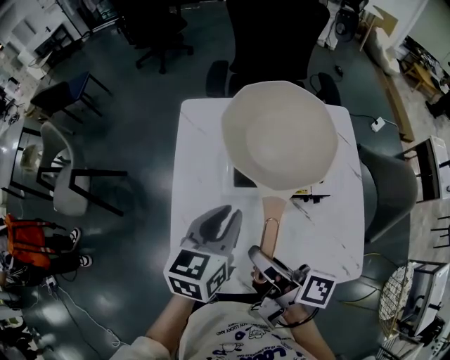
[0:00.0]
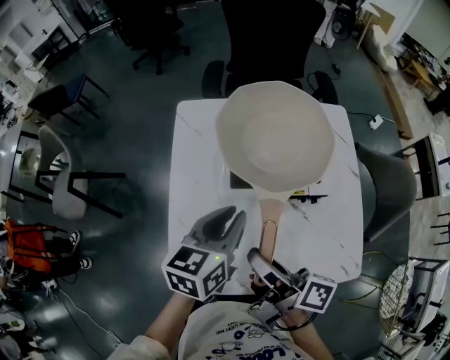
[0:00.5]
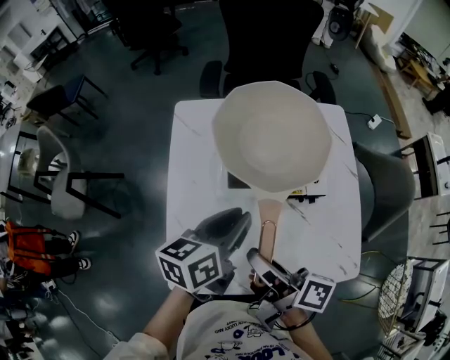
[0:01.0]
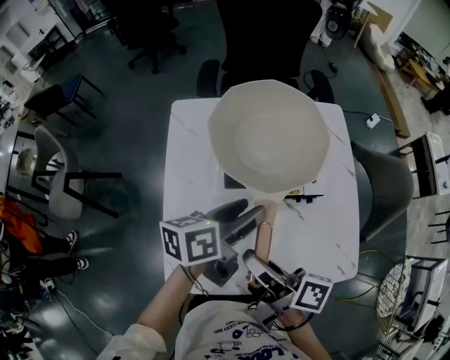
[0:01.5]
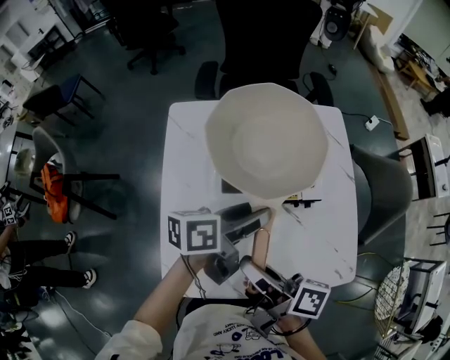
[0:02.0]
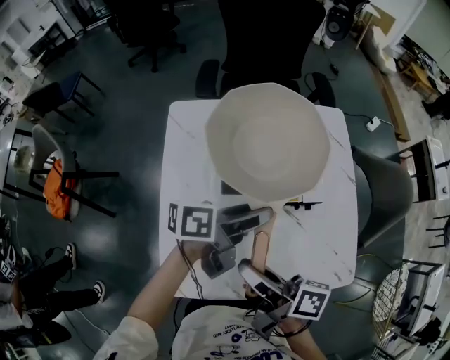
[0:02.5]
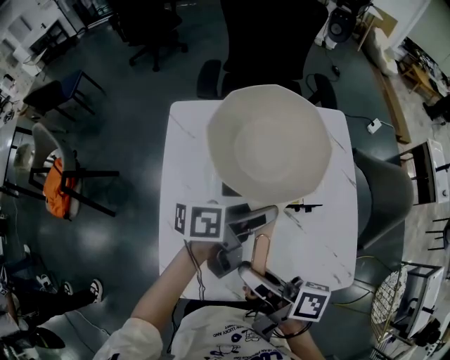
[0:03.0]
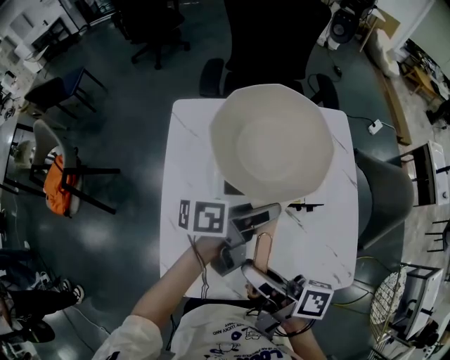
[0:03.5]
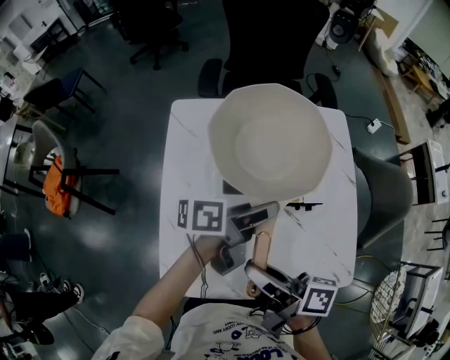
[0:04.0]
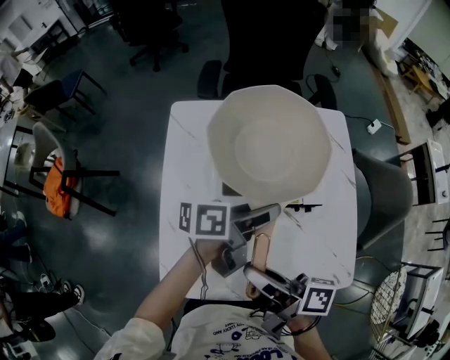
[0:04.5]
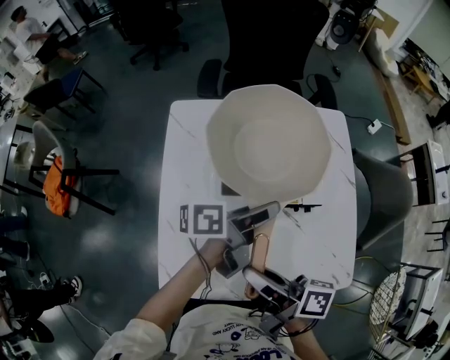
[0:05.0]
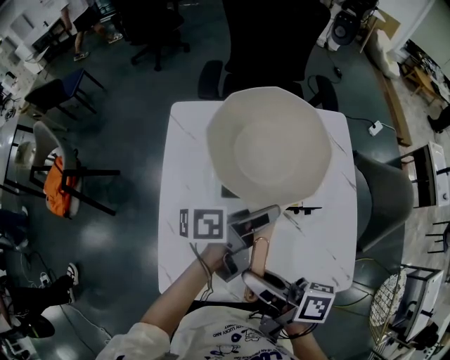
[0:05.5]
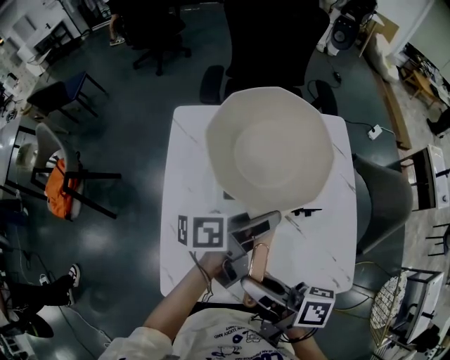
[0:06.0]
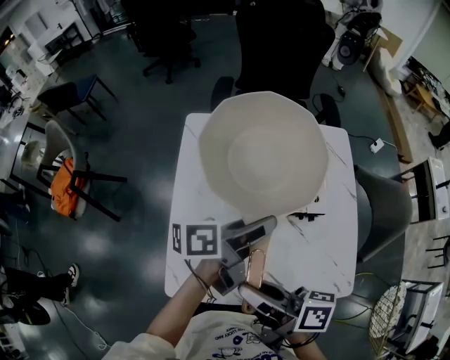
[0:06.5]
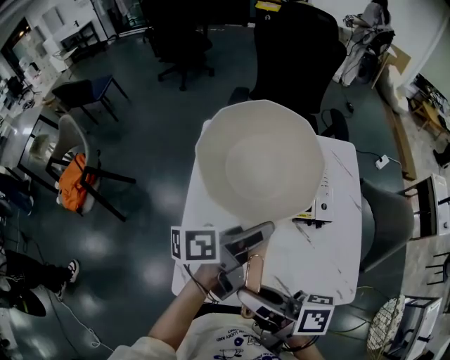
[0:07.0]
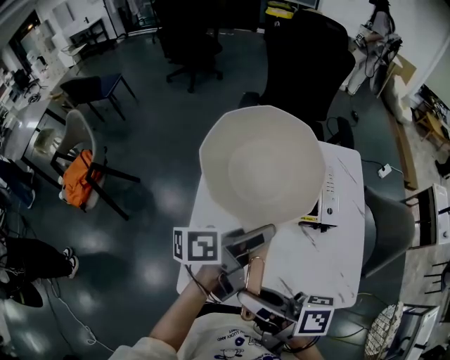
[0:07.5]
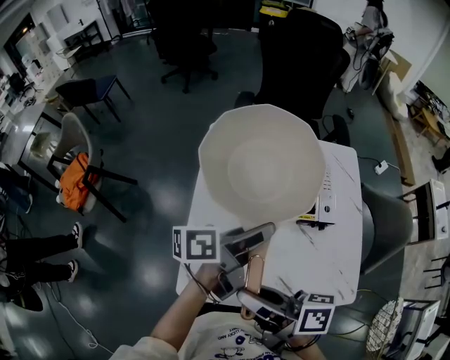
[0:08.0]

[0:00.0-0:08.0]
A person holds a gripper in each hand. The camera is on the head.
0:00.0 to 0:02.0: The left gripper goes approximately 10 cm to the right, rotates about 50 degrees, and opens.
0:02.0 to 0:06.0: The grippers move only a little.
0:06.0 to 0:08.0: The right gripper travels to the left by about 5 cm. The left gripper travels to the left and upward by about 10 cm.

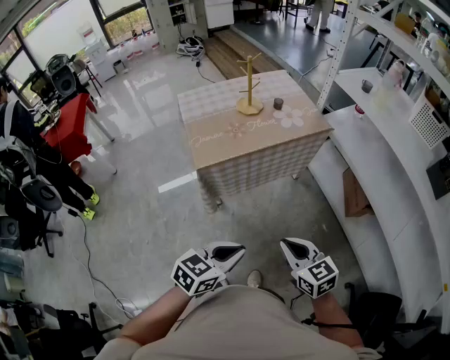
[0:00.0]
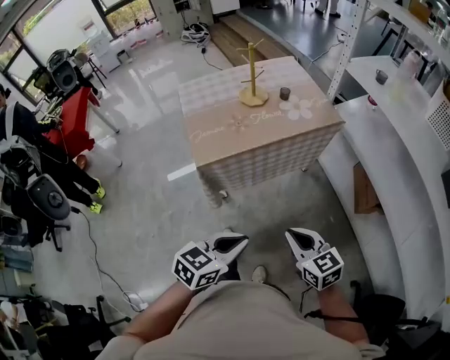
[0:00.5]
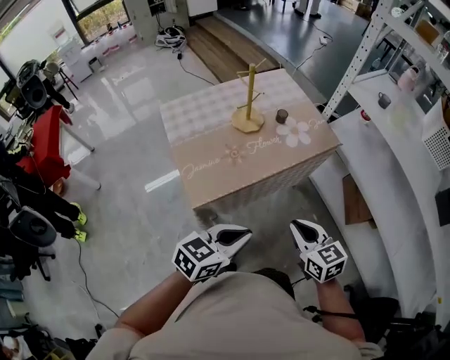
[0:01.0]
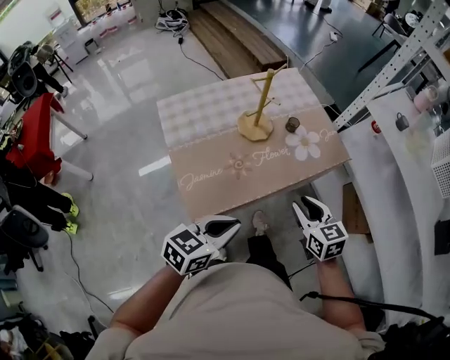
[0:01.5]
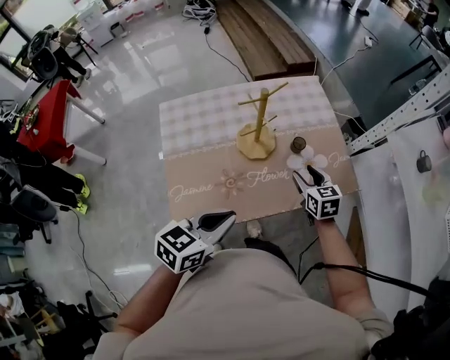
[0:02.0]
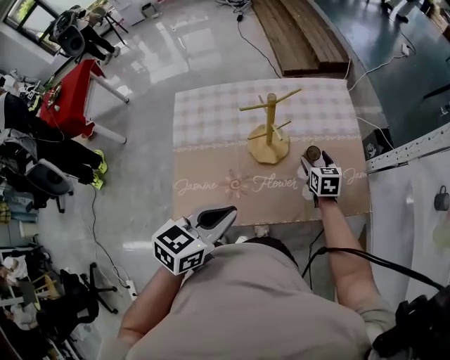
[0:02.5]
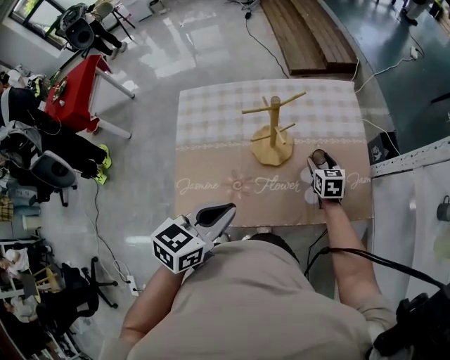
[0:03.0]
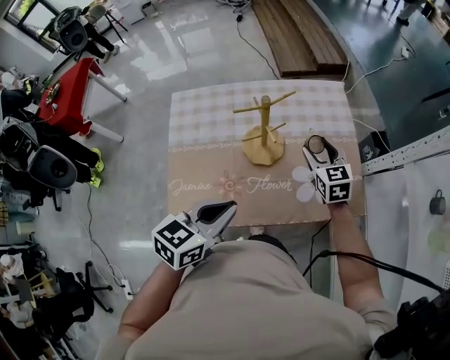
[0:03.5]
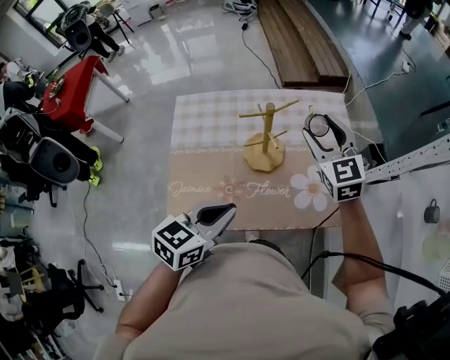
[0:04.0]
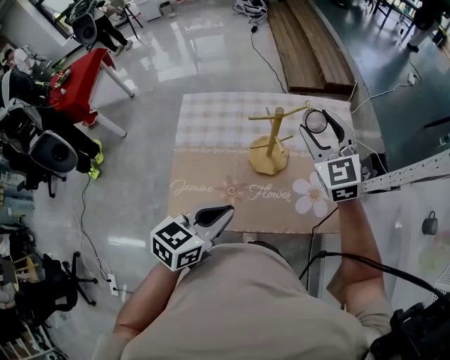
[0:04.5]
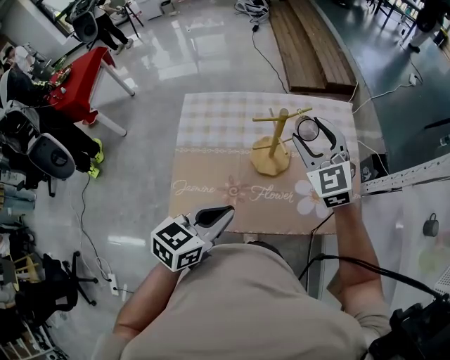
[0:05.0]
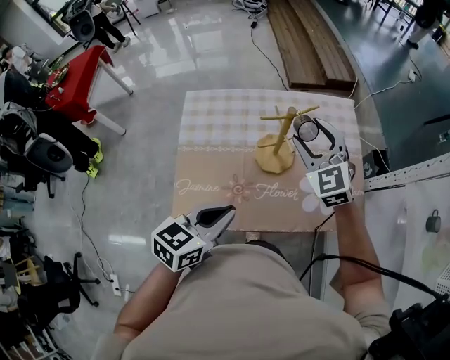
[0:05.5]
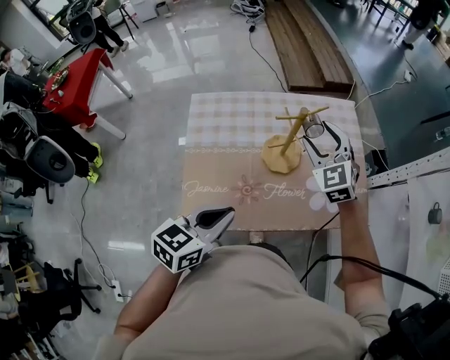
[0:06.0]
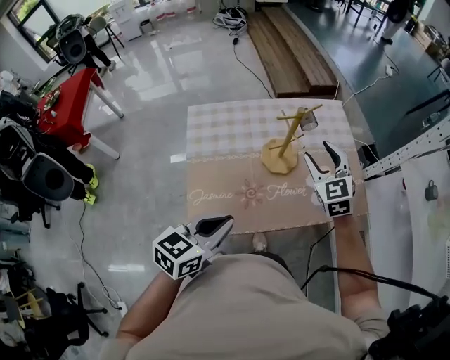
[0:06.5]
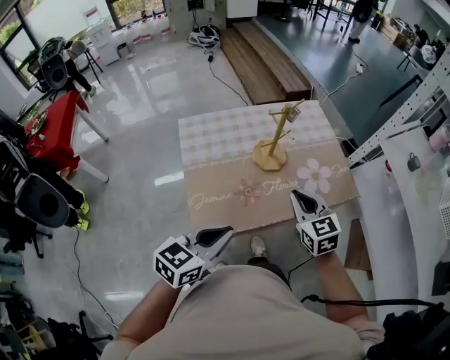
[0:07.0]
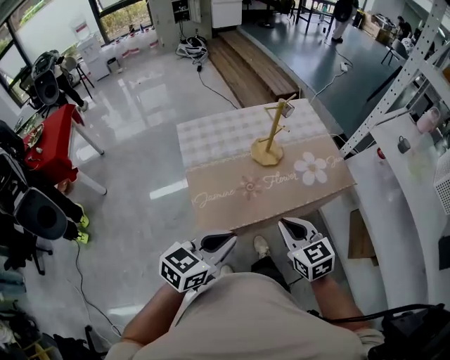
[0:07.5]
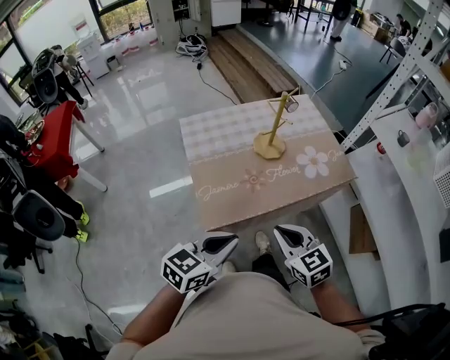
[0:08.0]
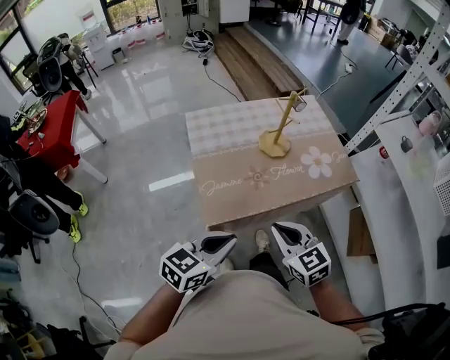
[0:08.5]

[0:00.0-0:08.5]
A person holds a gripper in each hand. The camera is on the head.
0:00.0 to 0:02.0: The pair of grippers is taken forward, about 60 cm. The right gripper opens its fingers.
0:02.0 to 0:04.0: The left gripper goes approximately 5 cm forward. The right gripper travels upward and forward by roughly 25 cm, and rotates some 40 degrees.
0:04.0 to 0:06.5: The right gripper is displaced backward and to the left by roughly 10 cm. Meanwhile the left gripper travels to the left and backward by about 10 cm.
0:06.5 to 0:08.5: The right gripper shifts some 40 cm backward, changes its angle by approximately 20 degrees, and closes its fingers; the left gripper moves backward, some 20 cm.

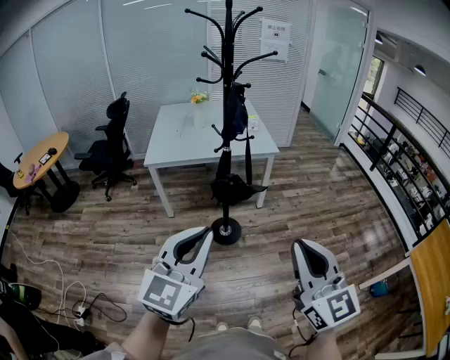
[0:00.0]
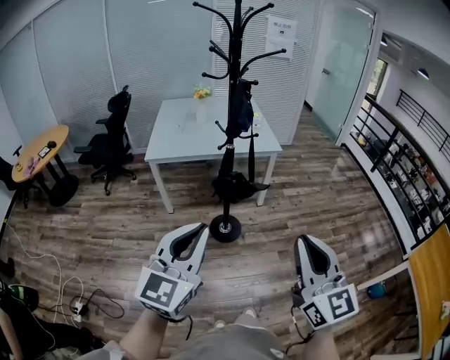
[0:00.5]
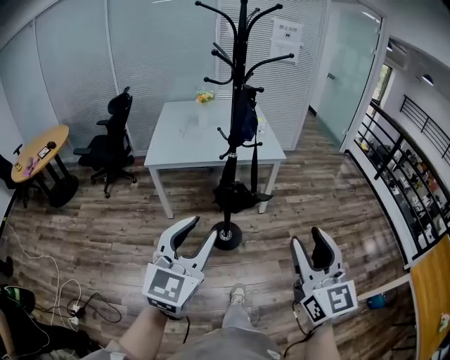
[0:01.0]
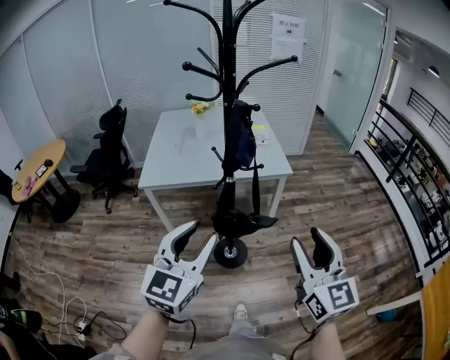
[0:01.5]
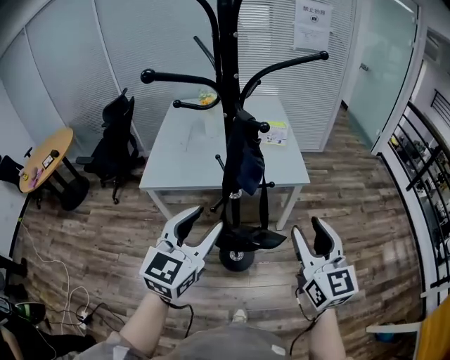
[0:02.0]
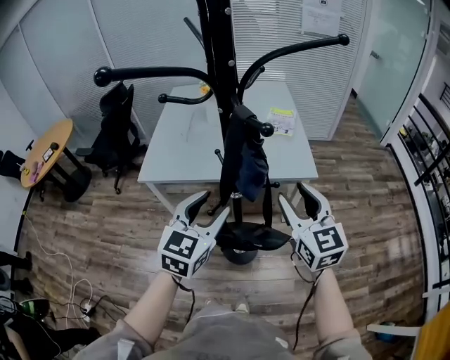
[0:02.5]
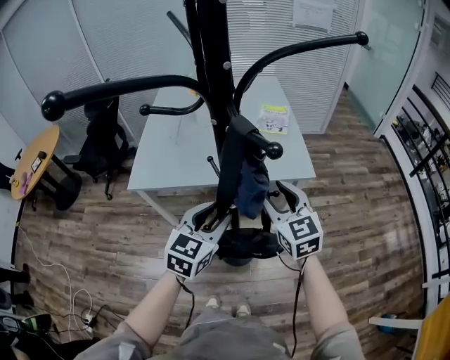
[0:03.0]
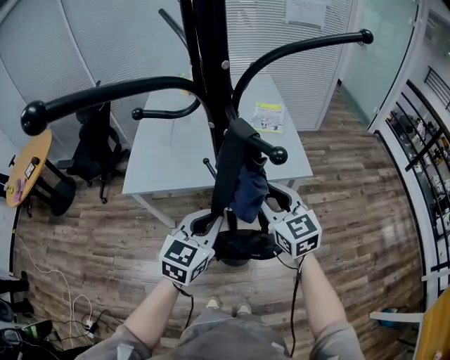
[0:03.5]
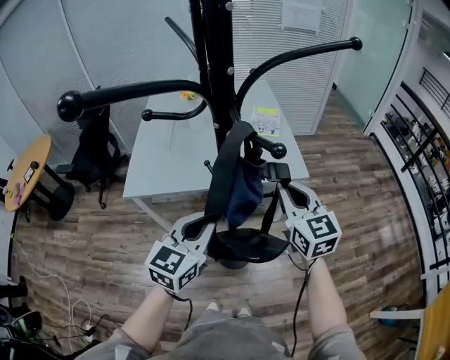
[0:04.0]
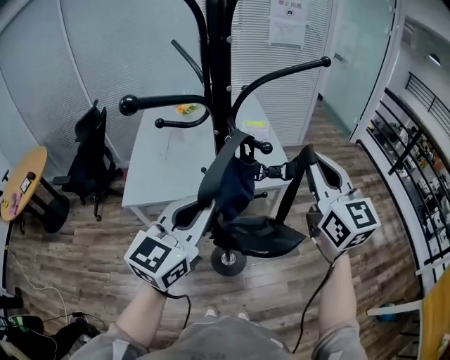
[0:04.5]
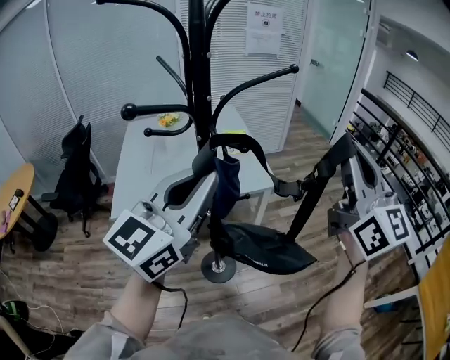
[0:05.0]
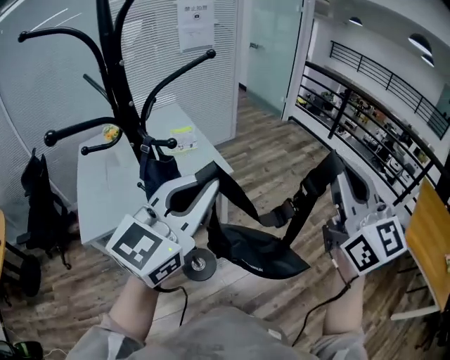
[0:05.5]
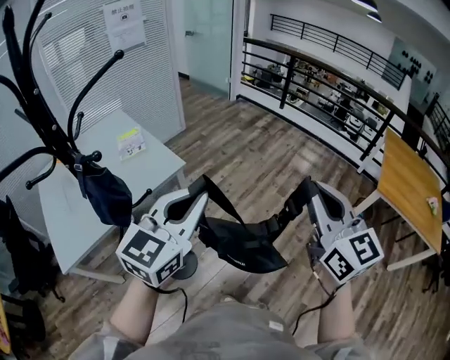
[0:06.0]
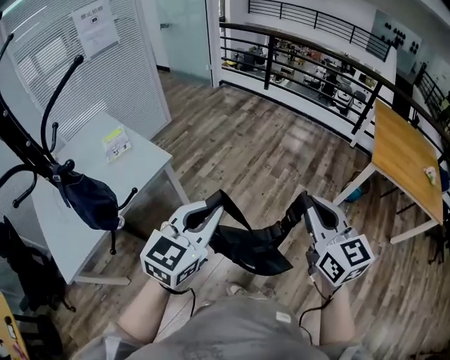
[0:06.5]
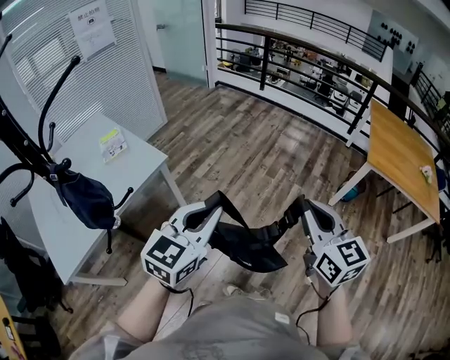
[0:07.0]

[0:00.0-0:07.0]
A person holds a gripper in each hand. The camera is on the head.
0:00.0 to 0:02.0: Both grippers move forward, about 40 cm. The left gripper opens, while the right gripper opens its fingers.
0:02.0 to 0:03.5: The right gripper heads forward, downward and to the left, covering roughly 25 cm. Meanwhile the left gripper travels forward and downward by approximately 15 cm, and closes.
0:03.5 to 0:05.0: The right gripper heads upward and to the right, covering about 35 cm, points its fingers some 30 degrees further upward, and closes up. Meanwhile the left gripper travels upward by about 25 cm, and angles its fingers upward, by roughly 30 degrees.
0:05.0 to 0:07.0: The right gripper ends up about 40 cm from where it was, and tips its fingers downward by roughly 30 degrees. Meanwhile the left gripper ends up some 35 cm from where it was, and turns by about 40 degrees.

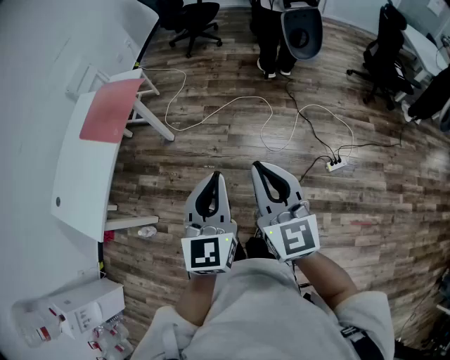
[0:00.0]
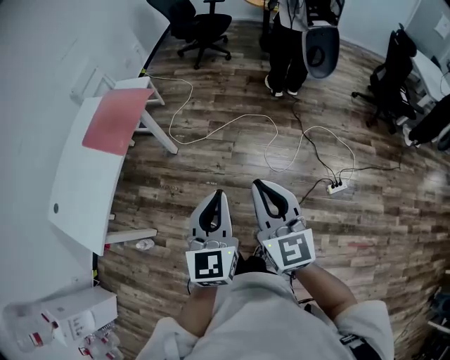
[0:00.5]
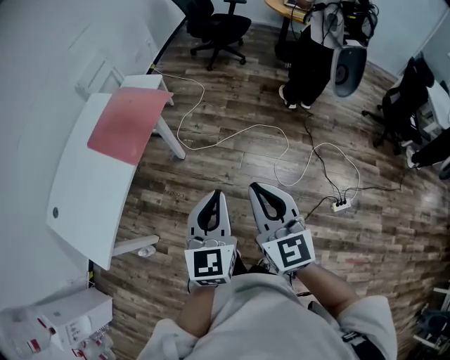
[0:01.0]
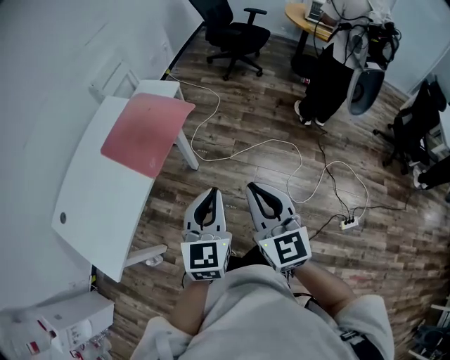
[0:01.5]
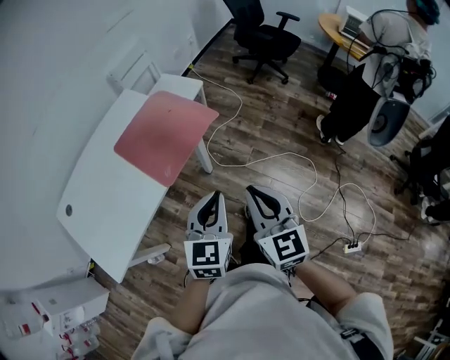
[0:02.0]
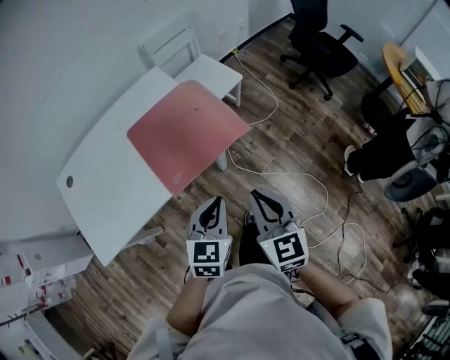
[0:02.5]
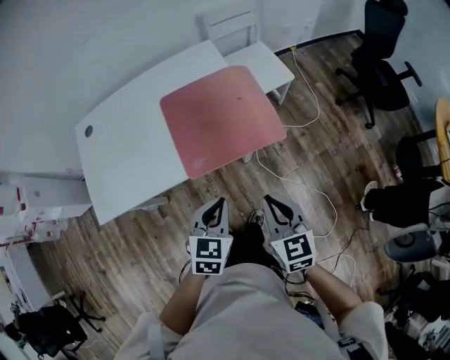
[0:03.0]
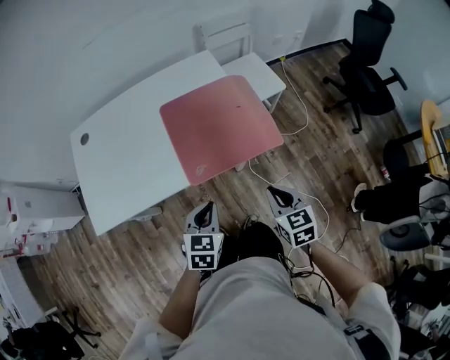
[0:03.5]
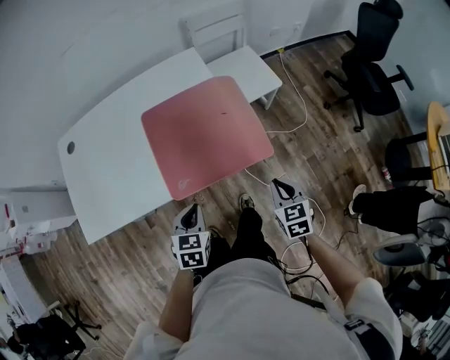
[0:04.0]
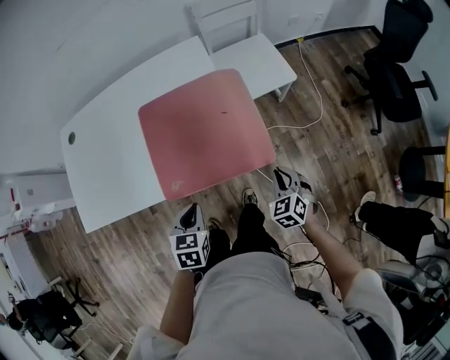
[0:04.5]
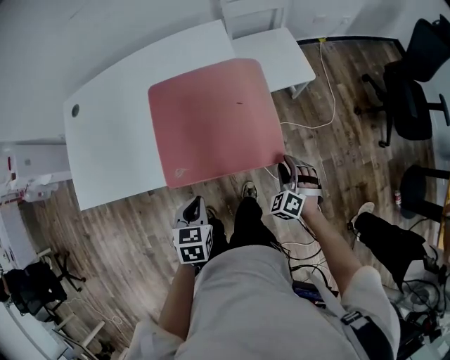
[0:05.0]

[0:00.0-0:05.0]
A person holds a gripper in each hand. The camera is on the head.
0:00.0 to 0:02.5: The two grippers travel together, approximately 60 cm. The right gripper turns by about 40 degrees; the left gripper turns by approximately 40 degrees.
0:02.5 to 0:05.0: The left gripper is displaced downward and forward by approximately 20 cm, and changes its angle by some 50 degrees, while the right gripper is displaced downward, forward and to the right by roughly 40 cm, rolls counterclockwise, seen from behind, by some 60 degrees, and opens up.
